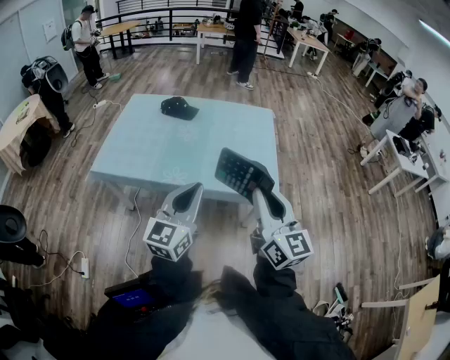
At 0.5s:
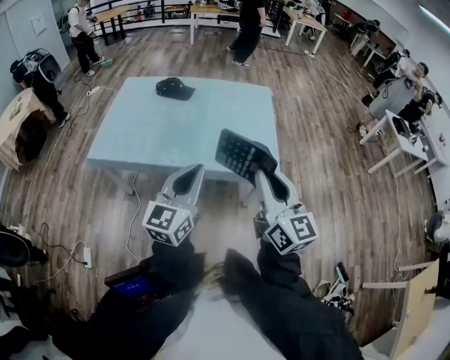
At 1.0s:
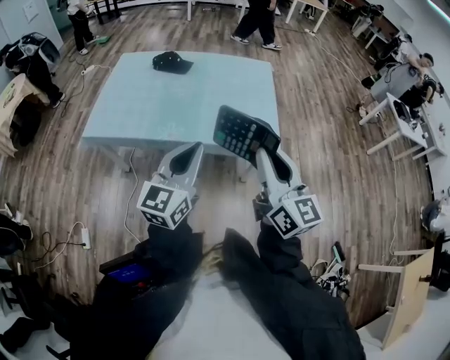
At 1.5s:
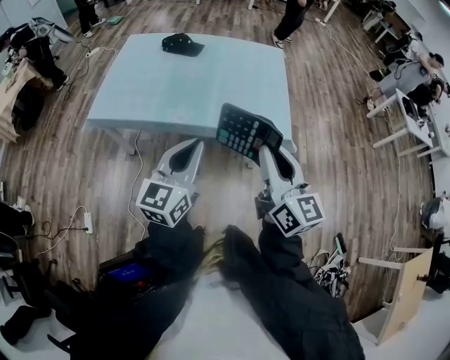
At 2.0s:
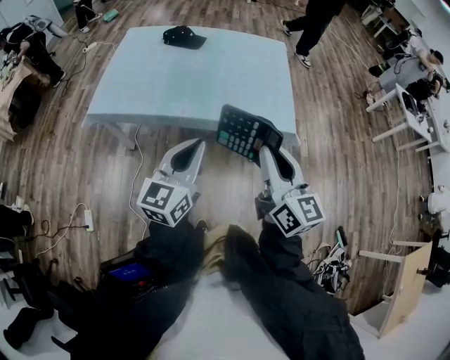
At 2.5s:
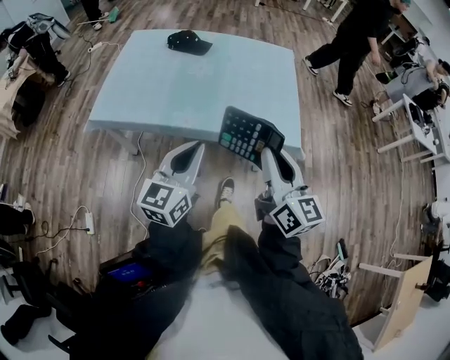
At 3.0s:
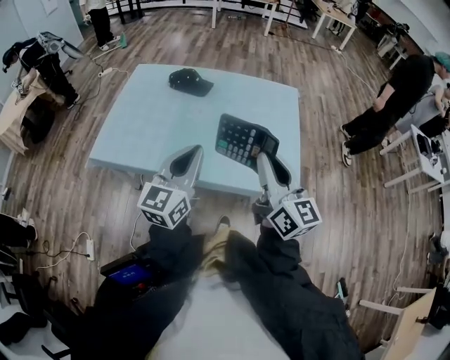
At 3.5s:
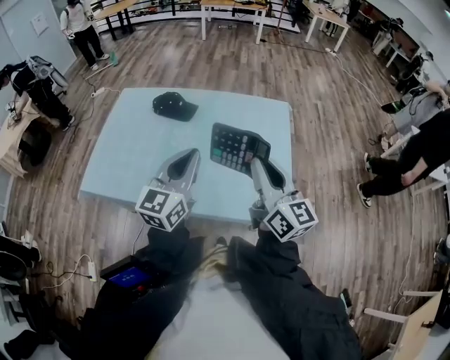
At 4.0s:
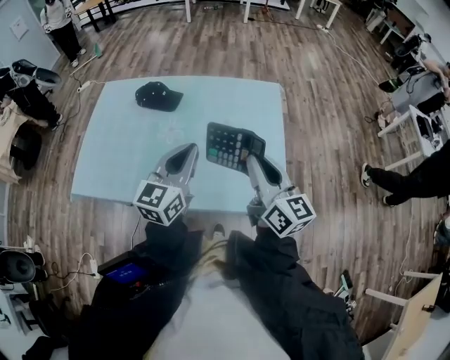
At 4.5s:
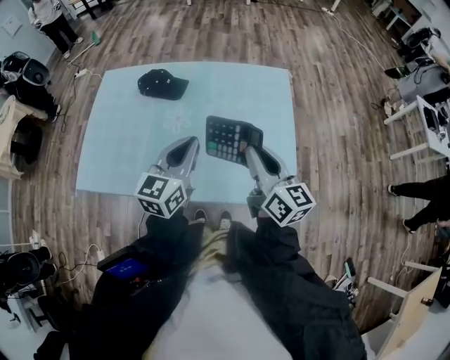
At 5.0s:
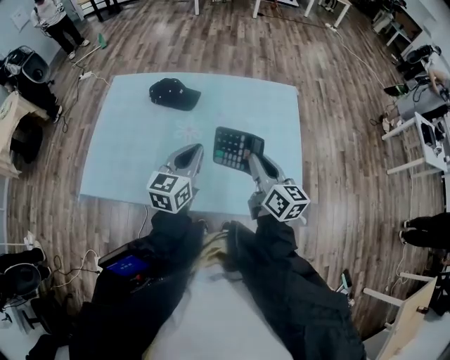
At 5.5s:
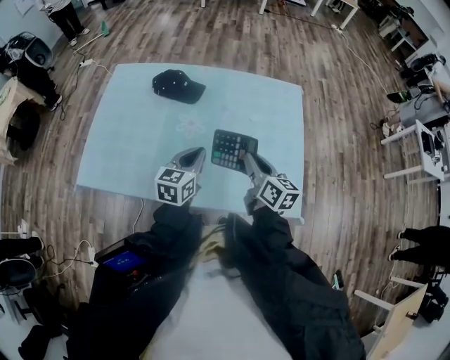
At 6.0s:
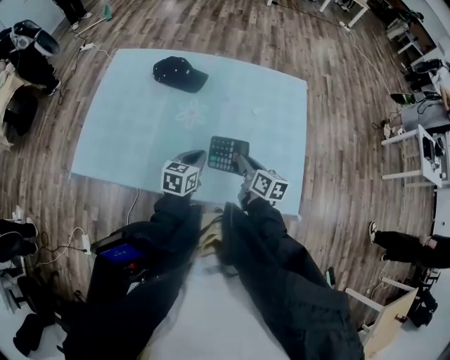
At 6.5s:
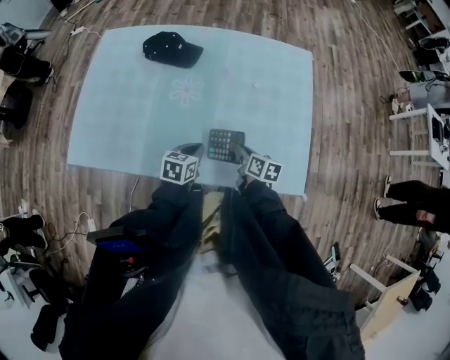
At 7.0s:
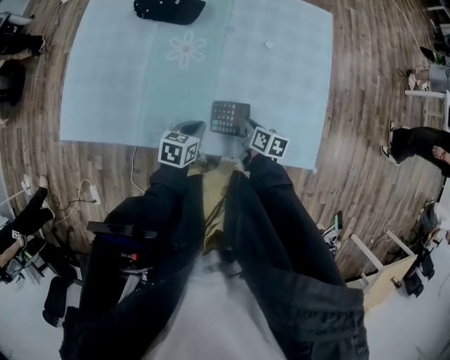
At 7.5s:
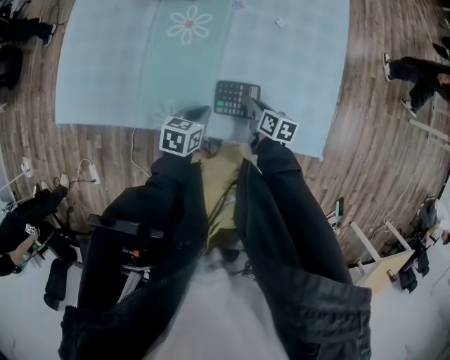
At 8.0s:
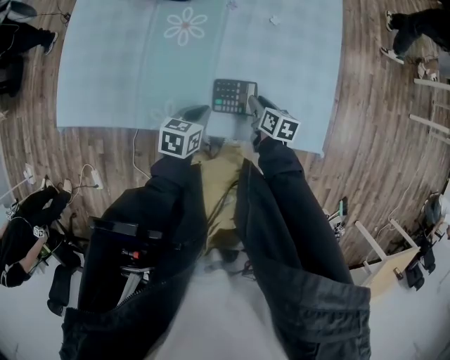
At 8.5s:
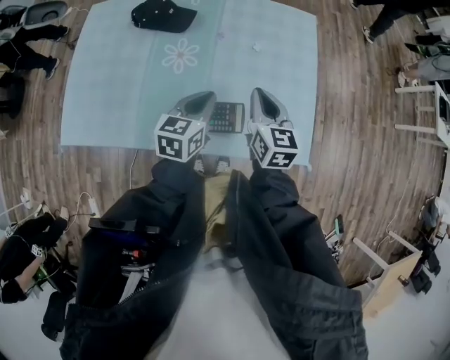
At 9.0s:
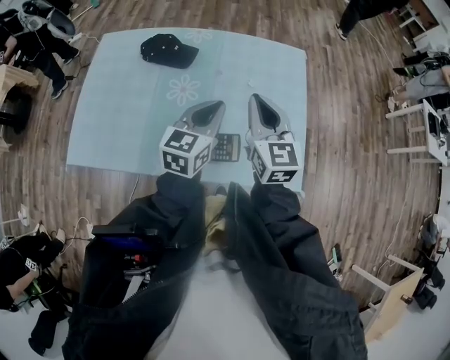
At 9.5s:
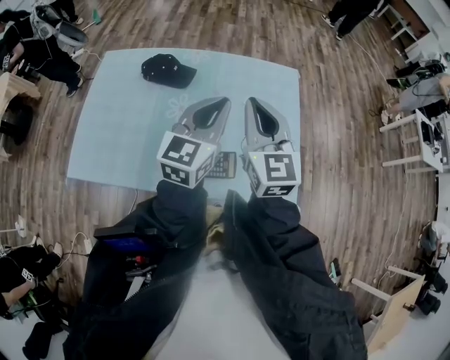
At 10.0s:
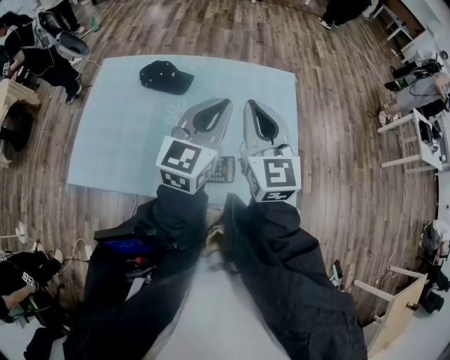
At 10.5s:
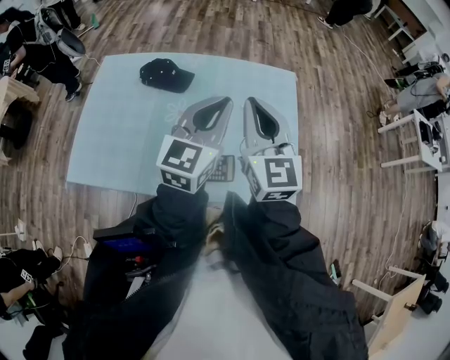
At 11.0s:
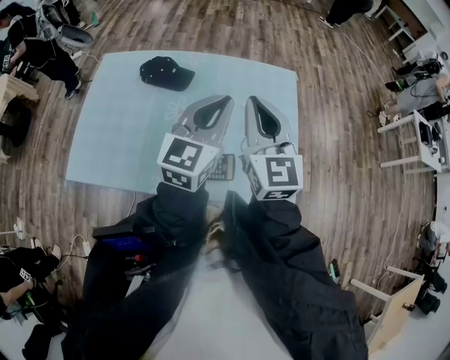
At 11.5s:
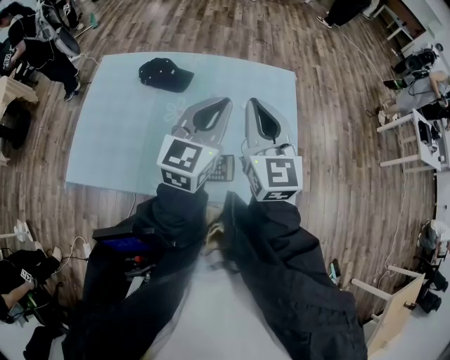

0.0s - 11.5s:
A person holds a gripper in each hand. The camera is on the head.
0.0s - 2.0s: Both grippers travel together to the left and downward, some 10 cm.
2.0s - 4.0s: The grippers both shift forward by roughly 35 cm.
4.0s - 6.0s: The left gripper goes some 25 cm downward, and changes its angle by approximately 30 degrees, while the right gripper goes some 25 cm downward and to the left, and tilts its fingers about 30 degrees downward.
6.0s - 7.5s: The left gripper goes about 15 cm downward and backward. Meanwhile the right gripper is displaced downward by approximately 20 cm, and rotates about 20 degrees.
7.5s - 9.5s: The two grippers go about 40 cm upward. The left gripper points its fingers approximately 40 degrees further upward, while the right gripper tilts its fingers about 40 degrees upward.
9.5s - 11.5s: The grippers make only small movements.

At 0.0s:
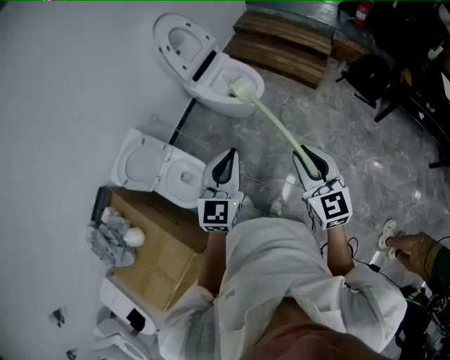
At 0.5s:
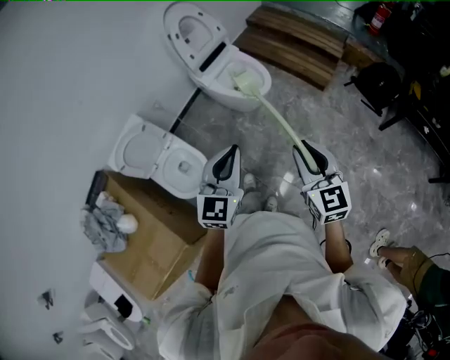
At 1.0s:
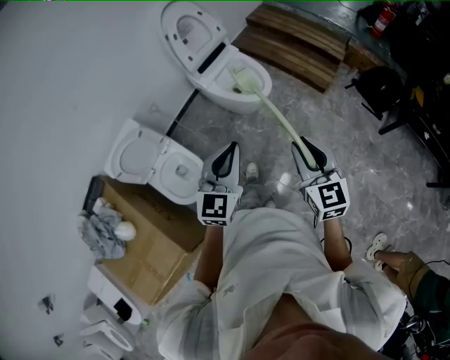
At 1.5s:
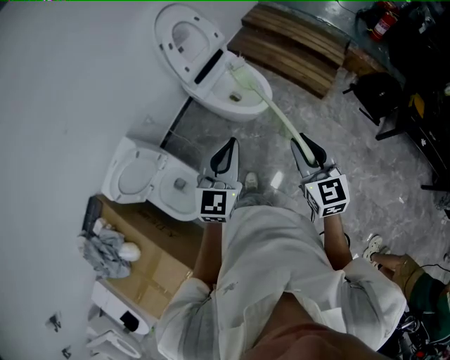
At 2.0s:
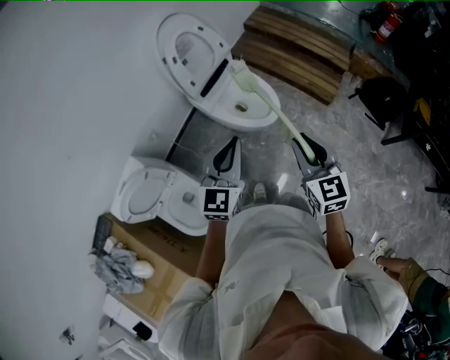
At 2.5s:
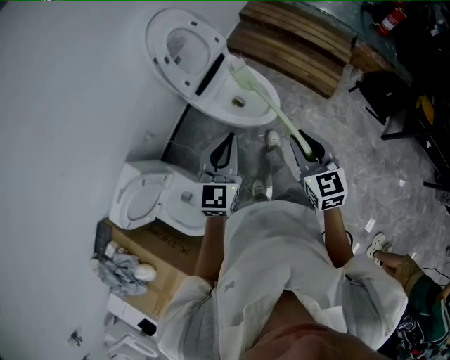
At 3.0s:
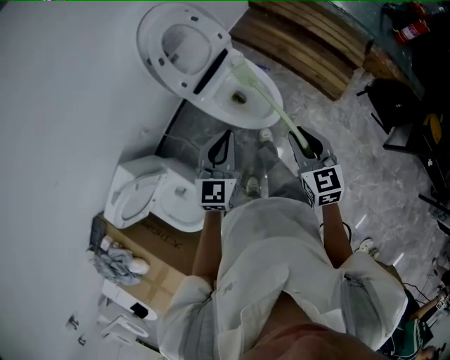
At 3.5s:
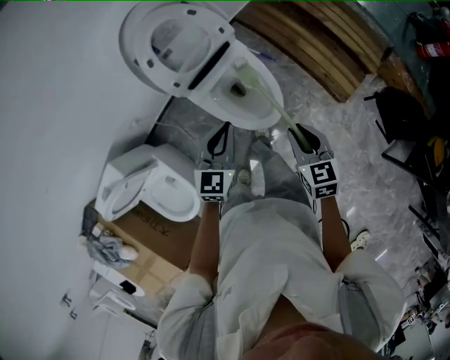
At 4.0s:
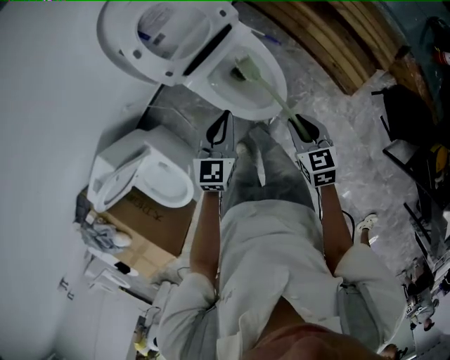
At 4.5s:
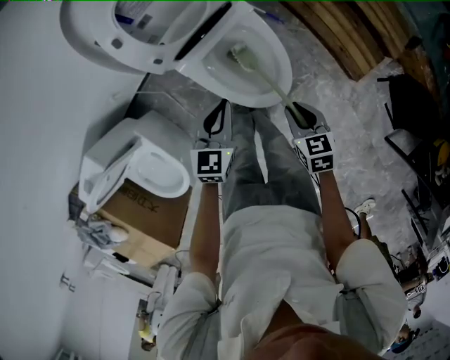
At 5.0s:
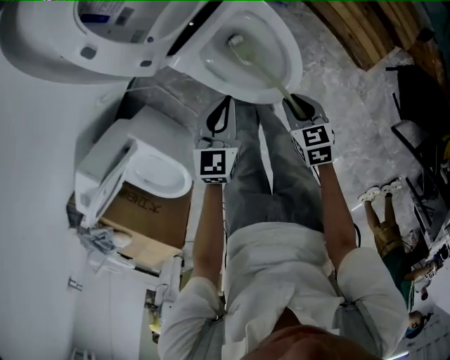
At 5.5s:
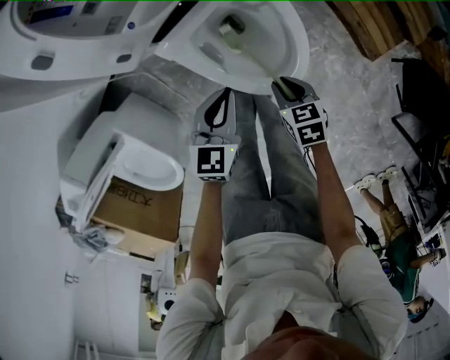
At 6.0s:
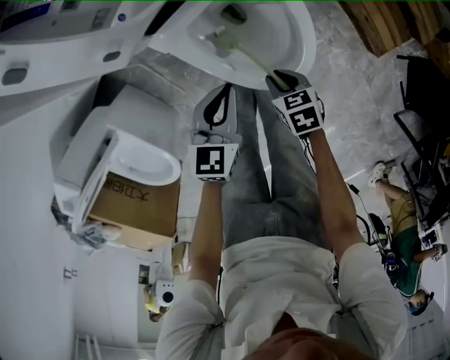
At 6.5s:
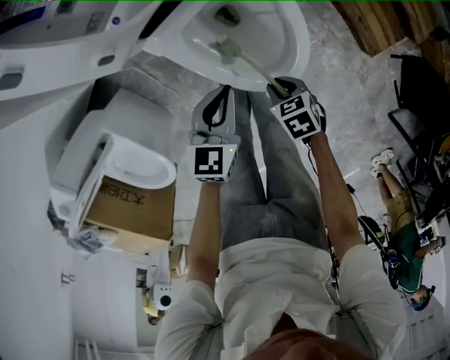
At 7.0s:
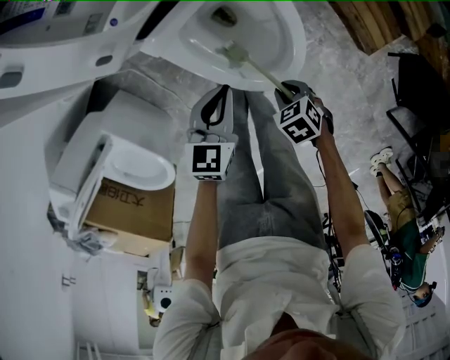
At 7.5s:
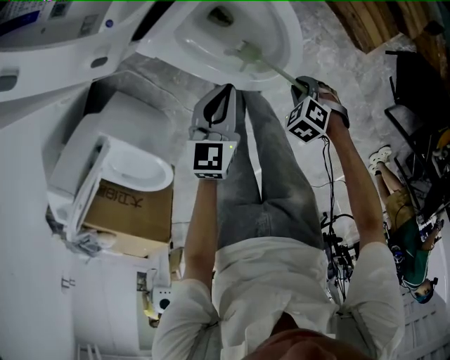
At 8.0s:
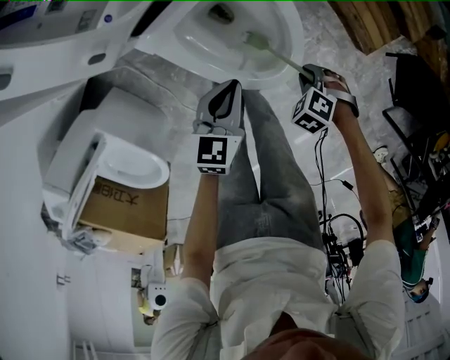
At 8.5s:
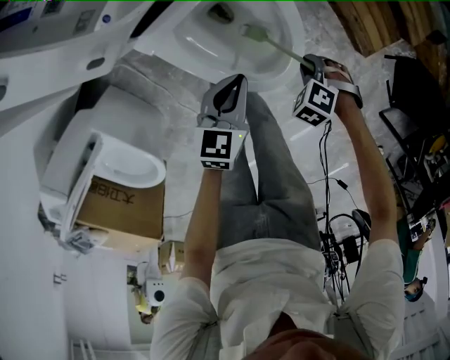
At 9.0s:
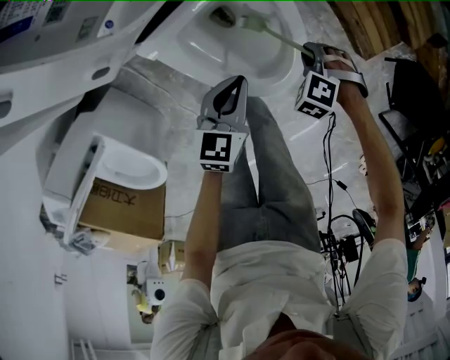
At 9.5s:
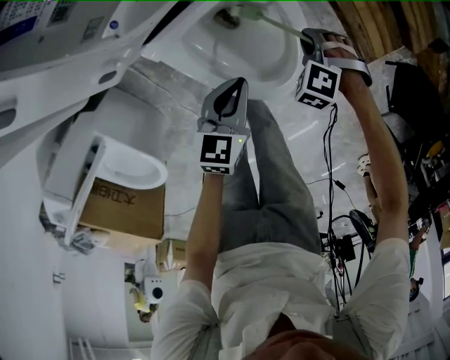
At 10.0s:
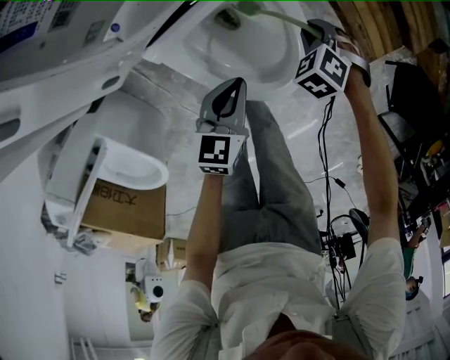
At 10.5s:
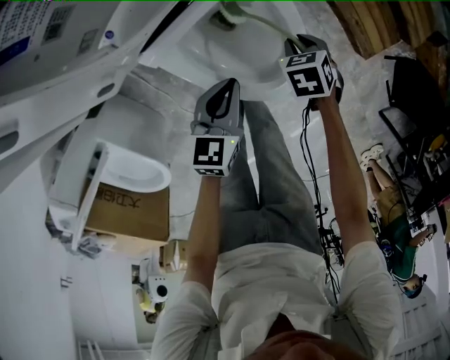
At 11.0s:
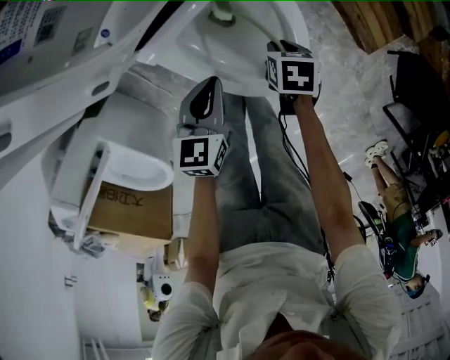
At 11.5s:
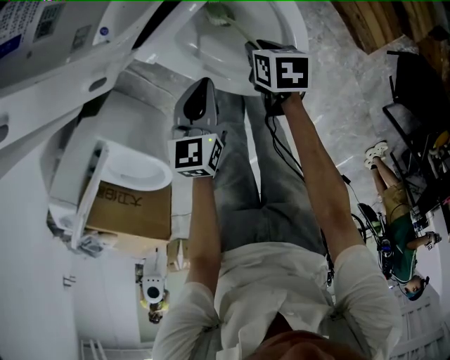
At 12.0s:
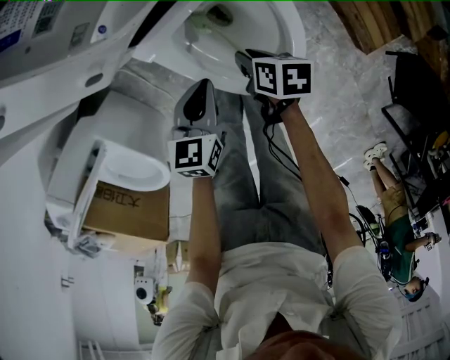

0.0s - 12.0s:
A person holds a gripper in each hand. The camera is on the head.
0.0s - 2.0s: The two grippers go about 30 cm forward.
2.0s - 4.0s: The grippers both shift forward and downward by roughly 35 cm. The right gripper turns by roughly 30 degrees; the left gripper changes its angle by approximately 30 degrees.
4.0s - 6.0s: The grippers both shift downward by roughly 25 cm. The right gripper turns by roughly 30 degrees.
6.0s - 8.0s: The right gripper moves some 10 cm, and twists approximately 50 degrees counterclockwise, seen from behind.
8.0s - 10.0s: The left gripper moves roughly 5 cm, while the right gripper ends up approximately 20 cm from where it was.
10.0s - 12.0s: The left gripper changes place by approximately 5 cm; the right gripper moves approximately 15 cm, and rotates around the line of its fingers by some 80 degrees, clockwise from behind.

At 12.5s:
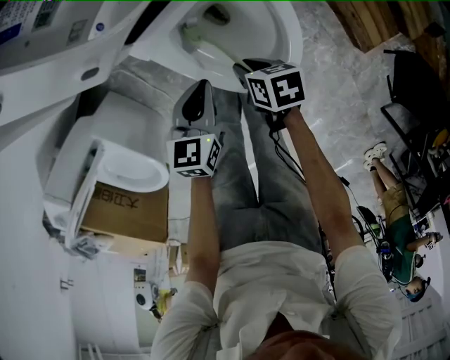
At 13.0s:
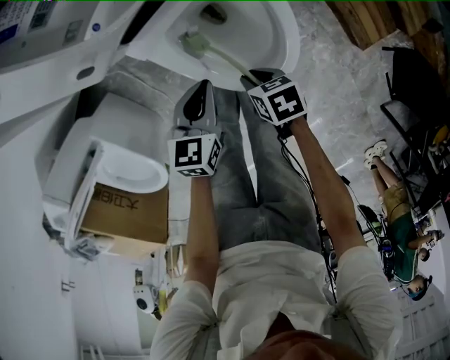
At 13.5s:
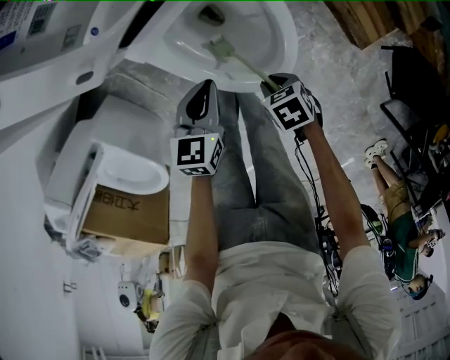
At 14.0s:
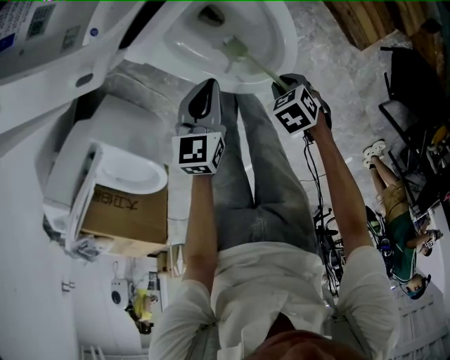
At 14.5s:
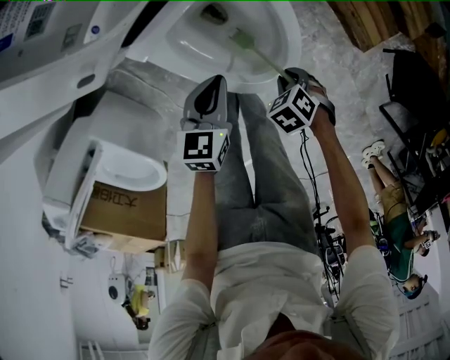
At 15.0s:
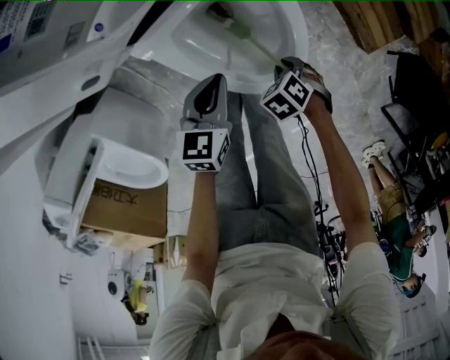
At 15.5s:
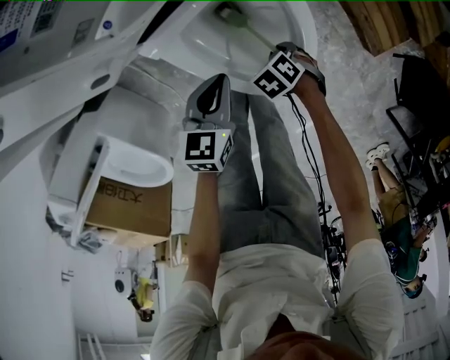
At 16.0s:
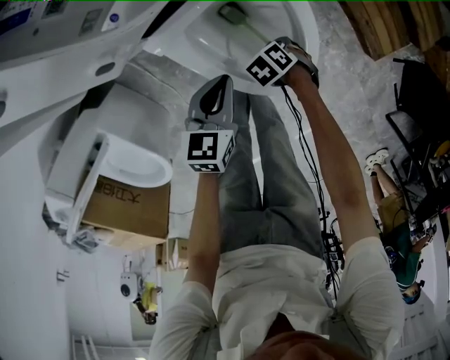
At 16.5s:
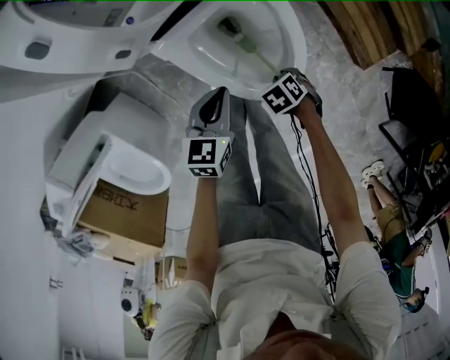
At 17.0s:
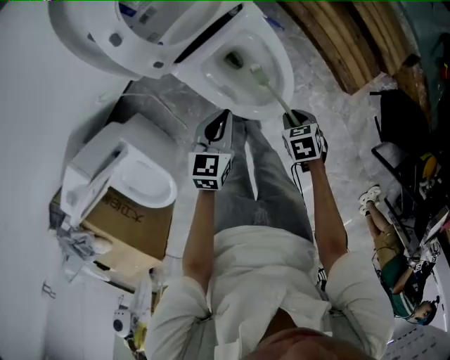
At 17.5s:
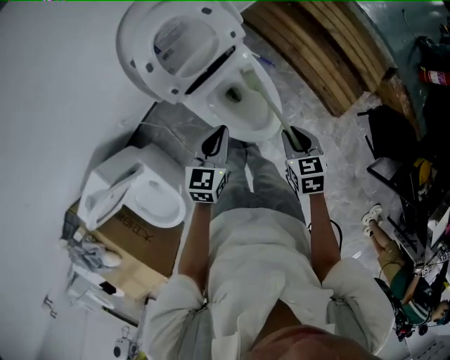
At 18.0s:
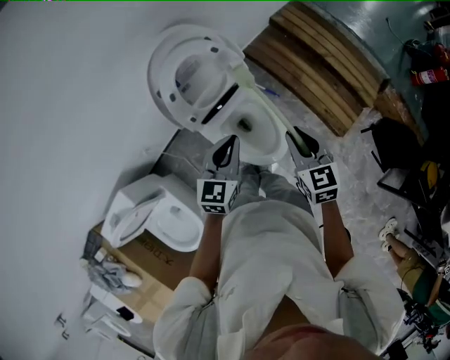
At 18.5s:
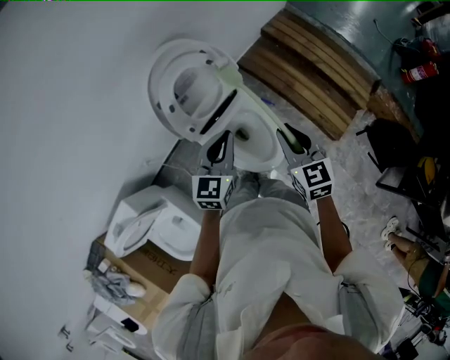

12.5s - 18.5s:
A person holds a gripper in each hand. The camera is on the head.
12.5s - 14.5s: The right gripper moves some 15 cm, and turns by roughly 50 degrees.
14.5s - 16.5s: The right gripper reaches about 10 cm downward, then returns. The left gripper changes place by approximately 5 cm.
16.5s - 18.5s: The two grippers go some 40 cm upward. The left gripper swivels some 30 degrees. Meanwhile the right gripper points its fingers some 60 degrees further upward.
